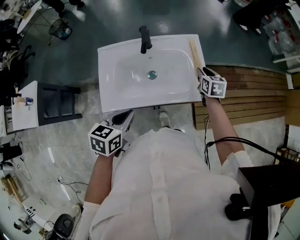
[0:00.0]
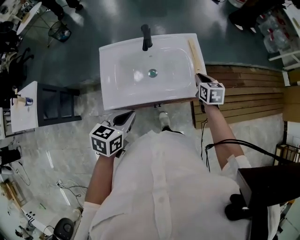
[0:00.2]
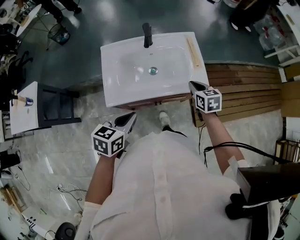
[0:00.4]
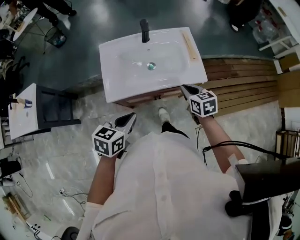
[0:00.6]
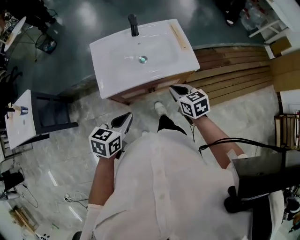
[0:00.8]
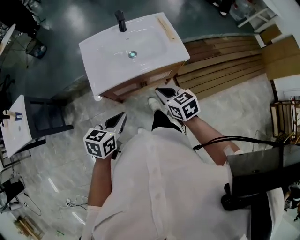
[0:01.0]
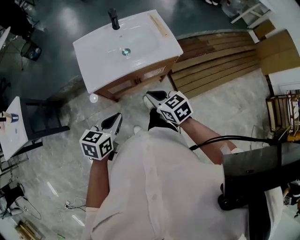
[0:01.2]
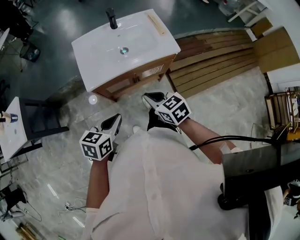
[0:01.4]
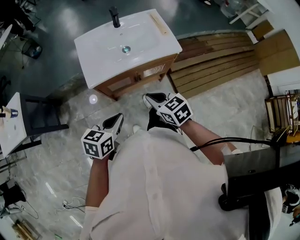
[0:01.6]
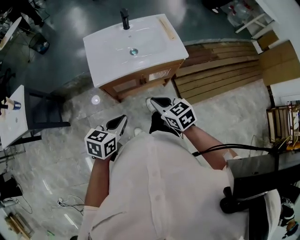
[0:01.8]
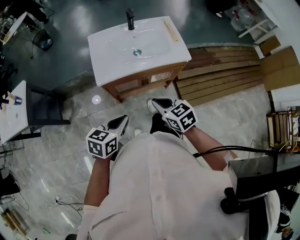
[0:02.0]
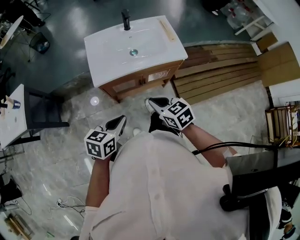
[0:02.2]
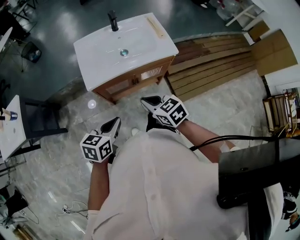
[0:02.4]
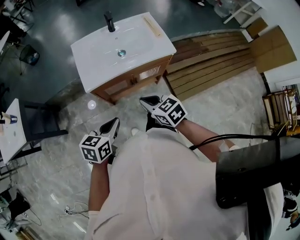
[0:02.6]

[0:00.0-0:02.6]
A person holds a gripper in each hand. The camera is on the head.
0:00.0 to 0:01.2: The left gripper shifts about 20 cm backward. Meanwhile the right gripper shifts roughly 40 cm backward and to the left, swivels some 20 degrees, and closes up.
0:01.2 to 0:02.6: The right gripper is displaced backward by approximately 5 cm.

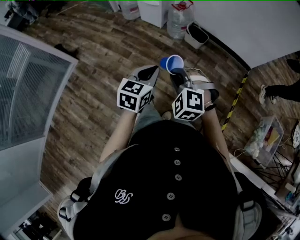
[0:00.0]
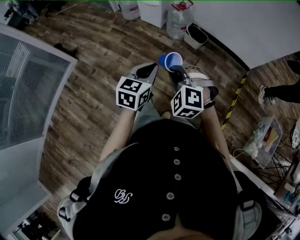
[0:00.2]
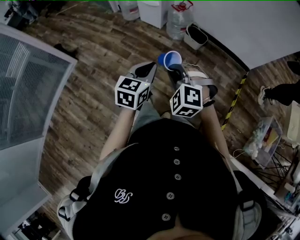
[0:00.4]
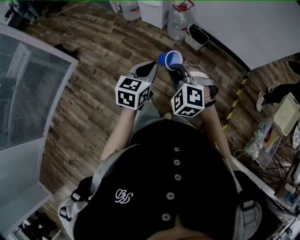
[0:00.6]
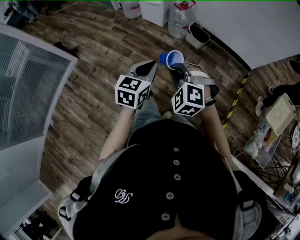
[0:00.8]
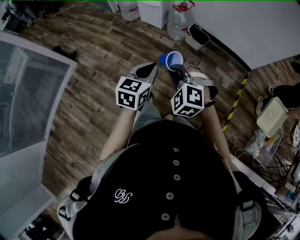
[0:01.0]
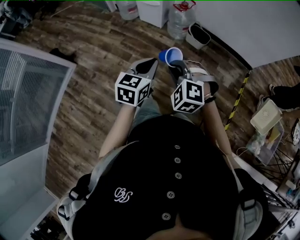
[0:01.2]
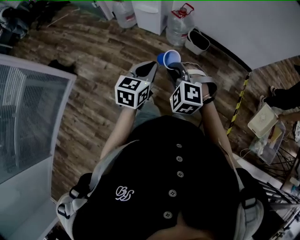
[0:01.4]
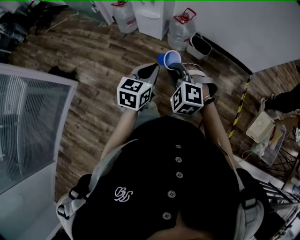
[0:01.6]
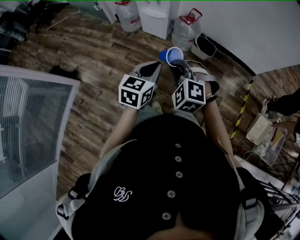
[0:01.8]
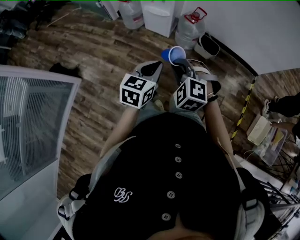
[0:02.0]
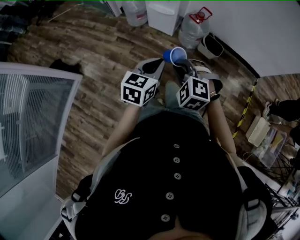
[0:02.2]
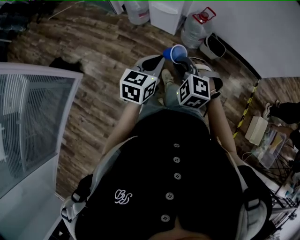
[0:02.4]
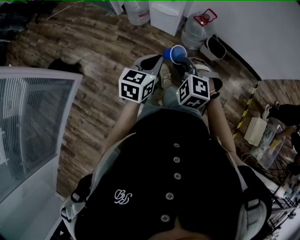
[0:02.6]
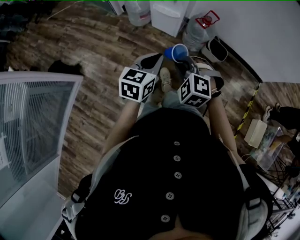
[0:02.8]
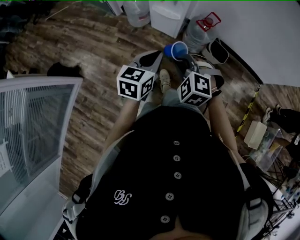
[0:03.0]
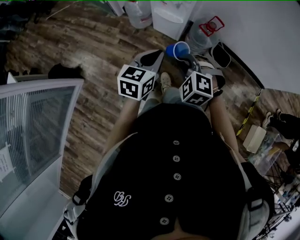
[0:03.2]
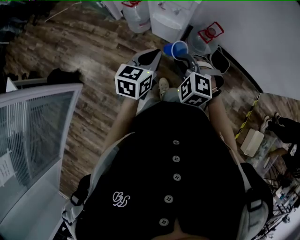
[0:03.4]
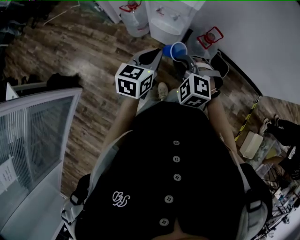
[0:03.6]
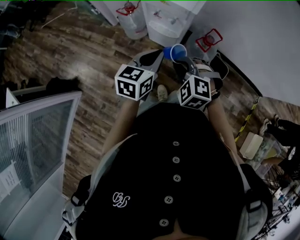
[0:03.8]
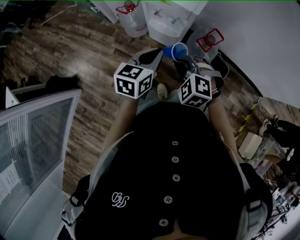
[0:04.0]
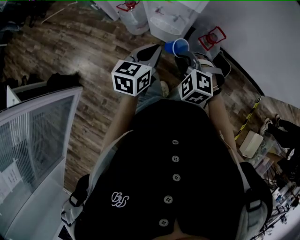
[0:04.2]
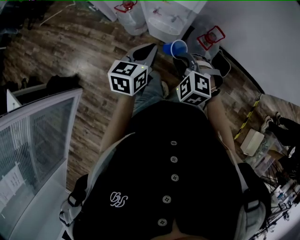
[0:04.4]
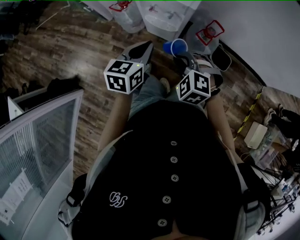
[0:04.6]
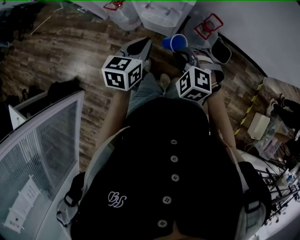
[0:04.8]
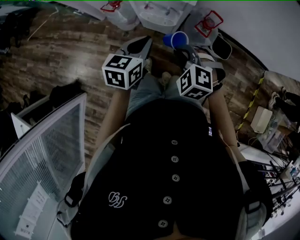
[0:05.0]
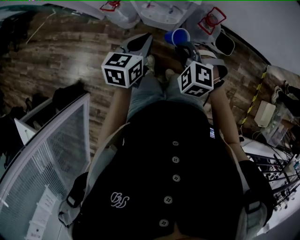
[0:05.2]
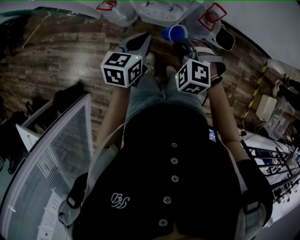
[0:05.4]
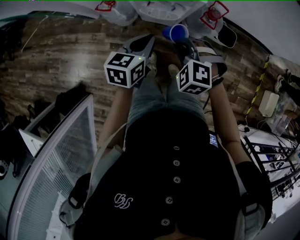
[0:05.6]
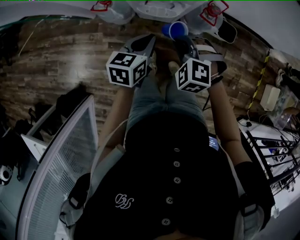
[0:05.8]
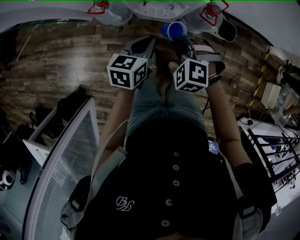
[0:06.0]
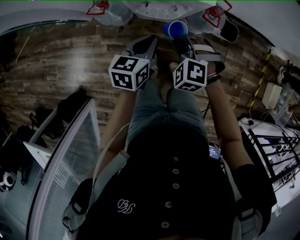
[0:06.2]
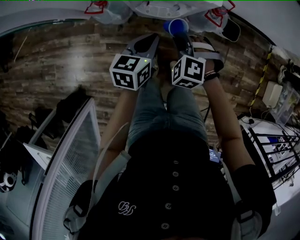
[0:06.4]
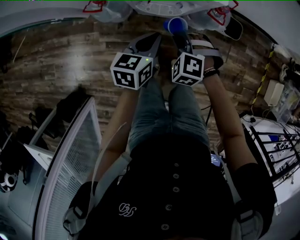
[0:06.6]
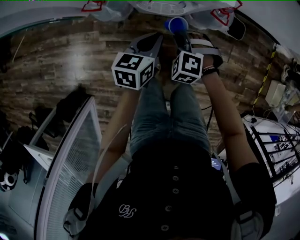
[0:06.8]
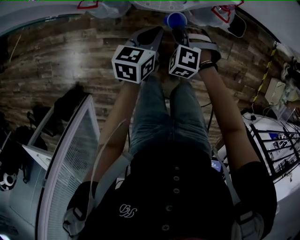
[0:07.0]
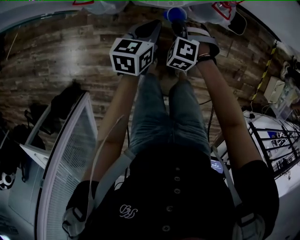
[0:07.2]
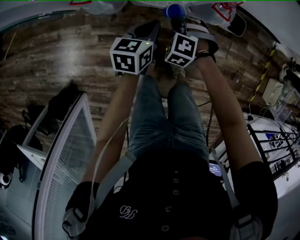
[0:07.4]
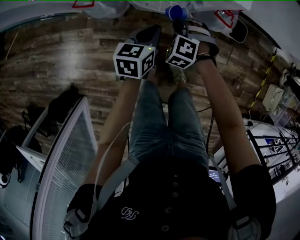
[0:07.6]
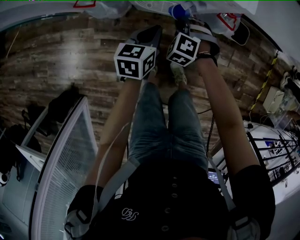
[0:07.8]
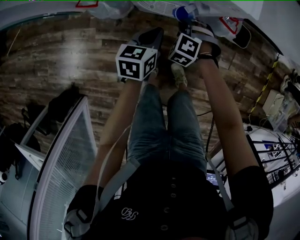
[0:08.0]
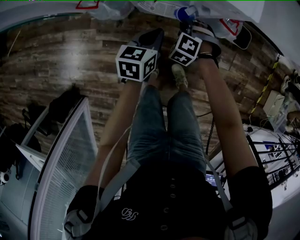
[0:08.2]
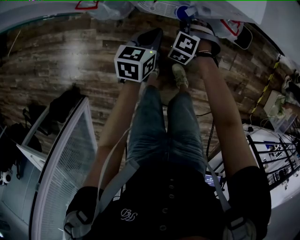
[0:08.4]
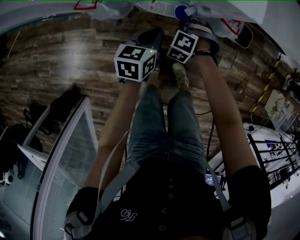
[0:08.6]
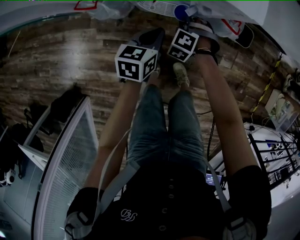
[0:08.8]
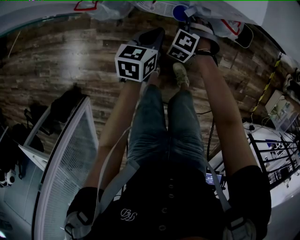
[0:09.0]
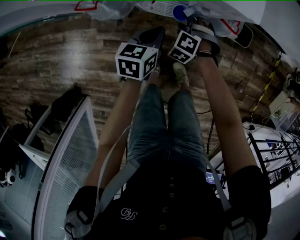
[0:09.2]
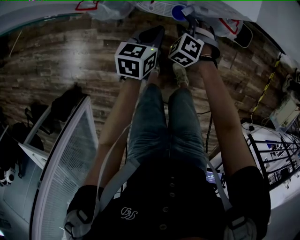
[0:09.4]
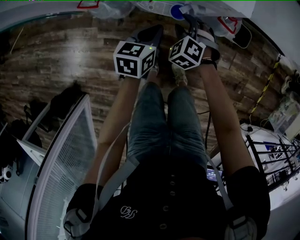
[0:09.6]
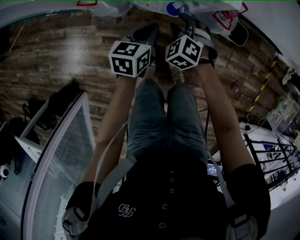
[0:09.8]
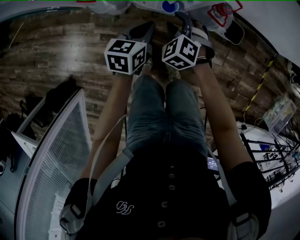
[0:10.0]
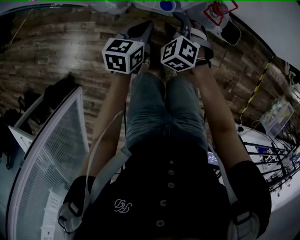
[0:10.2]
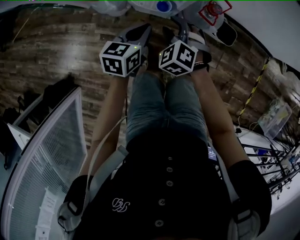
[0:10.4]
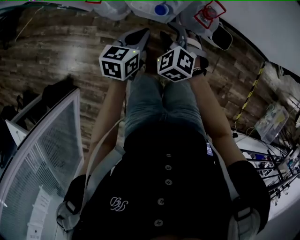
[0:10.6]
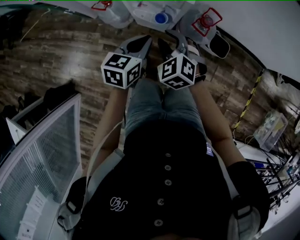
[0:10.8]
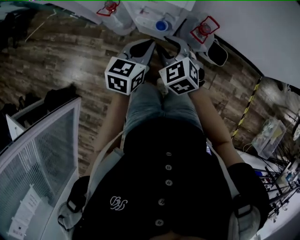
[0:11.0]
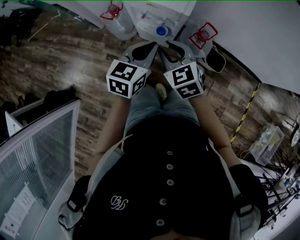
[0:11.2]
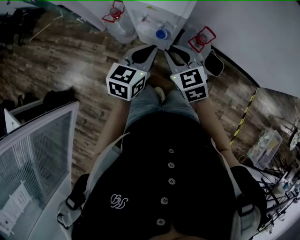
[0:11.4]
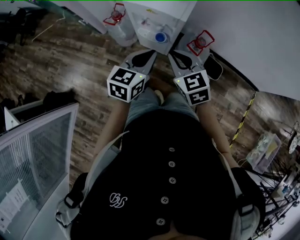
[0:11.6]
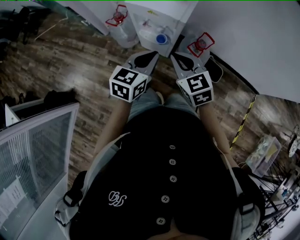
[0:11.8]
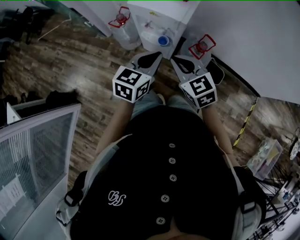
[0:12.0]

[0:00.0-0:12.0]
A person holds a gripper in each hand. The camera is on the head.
0:00.0 to 0:01.6: Both grippers move forward and to the left, approximately 20 cm.
0:01.6 to 0:03.0: Both grippers move forward and to the left, some 20 cm.
0:03.0 to 0:04.4: The two grippers go some 20 cm forward.
0:04.4 to 0:06.0: The left gripper travels downward and forward by some 15 cm, and rotates approximately 20 degrees; the right gripper moves forward, downward and to the left, approximately 15 cm.
0:06.0 to 0:07.6: The right gripper heads downward and forward, covering about 20 cm; the left gripper heads downward, covering roughly 15 cm.
0:07.6 to 0:09.0: The right gripper is displaced downward by some 5 cm, and opens its fingers.
0:09.0 to 0:10.4: The left gripper travels upward by approximately 15 cm. Meanwhile the right gripper is displaced upward by some 20 cm, and rotates about 30 degrees.
0:10.4 to 0:12.0: Both grippers move upward and backward, roughly 20 cm. The right gripper changes its angle by about 40 degrees, and closes its fingers.

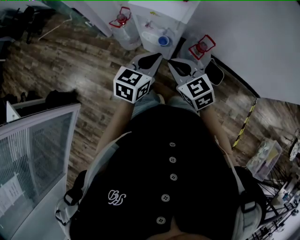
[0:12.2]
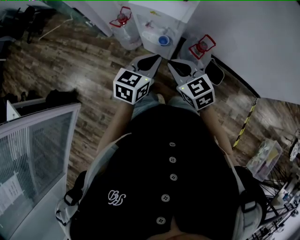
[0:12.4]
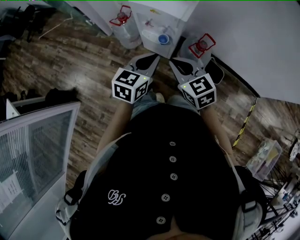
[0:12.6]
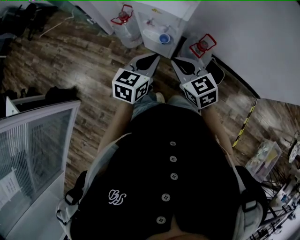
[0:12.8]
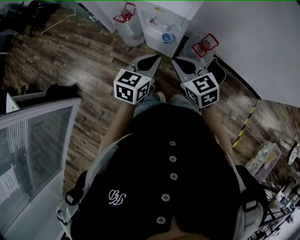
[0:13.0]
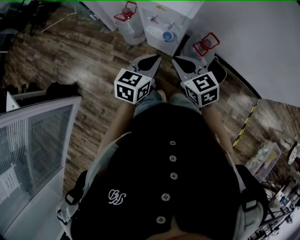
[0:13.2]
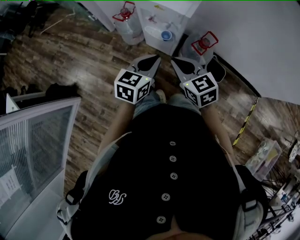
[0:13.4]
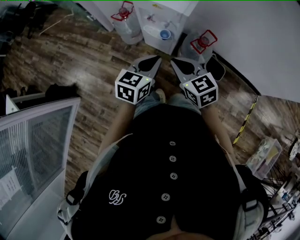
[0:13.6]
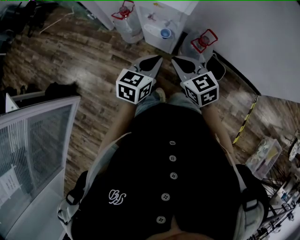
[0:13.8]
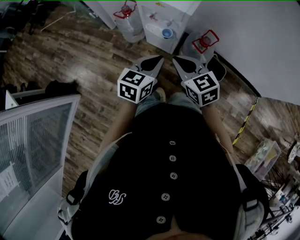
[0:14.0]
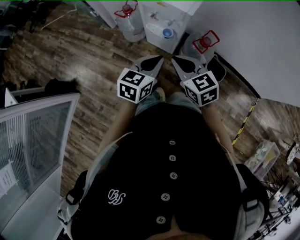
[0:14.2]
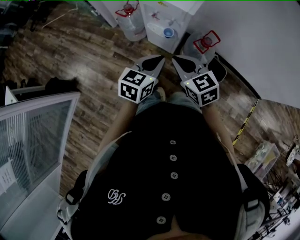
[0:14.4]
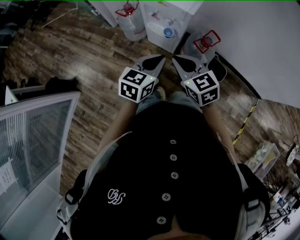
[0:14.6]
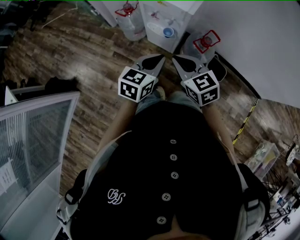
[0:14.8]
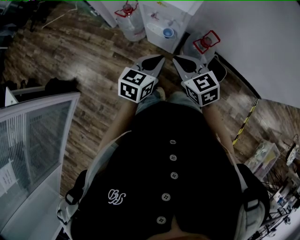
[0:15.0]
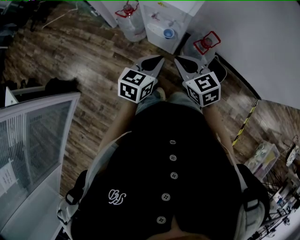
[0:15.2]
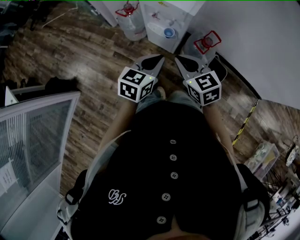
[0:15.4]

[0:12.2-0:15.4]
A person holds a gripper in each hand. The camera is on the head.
0:12.2 to 0:13.8: The left gripper changes place by some 5 cm.
0:13.8 to 0:15.4: Both grippers stay put.

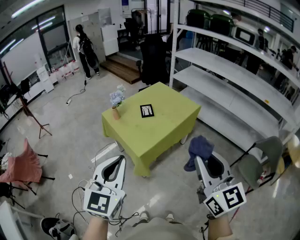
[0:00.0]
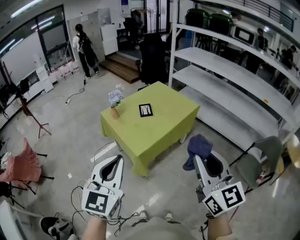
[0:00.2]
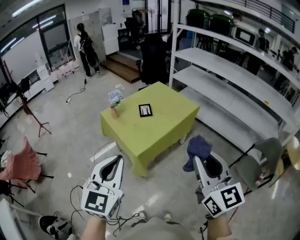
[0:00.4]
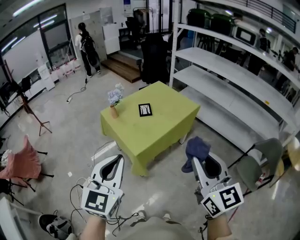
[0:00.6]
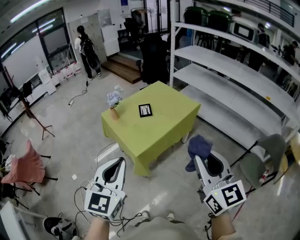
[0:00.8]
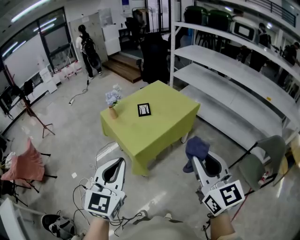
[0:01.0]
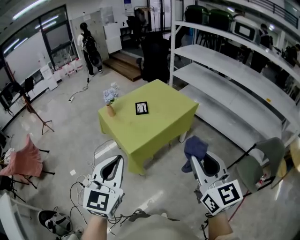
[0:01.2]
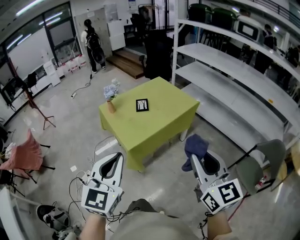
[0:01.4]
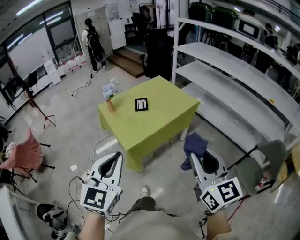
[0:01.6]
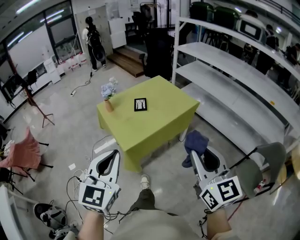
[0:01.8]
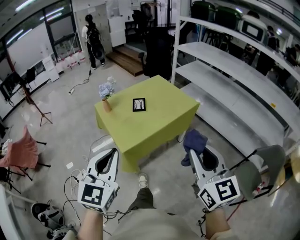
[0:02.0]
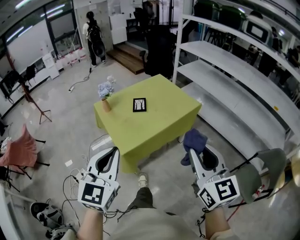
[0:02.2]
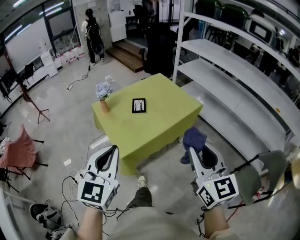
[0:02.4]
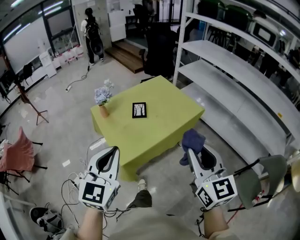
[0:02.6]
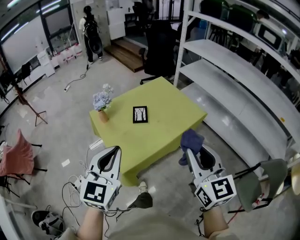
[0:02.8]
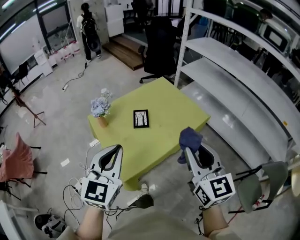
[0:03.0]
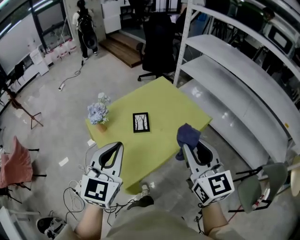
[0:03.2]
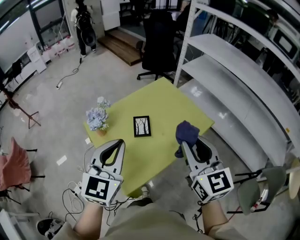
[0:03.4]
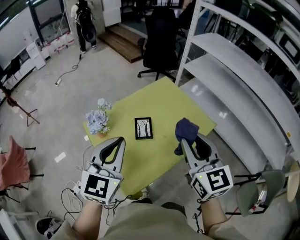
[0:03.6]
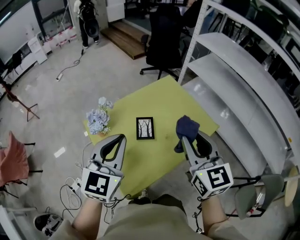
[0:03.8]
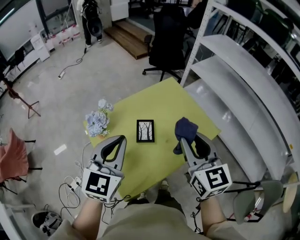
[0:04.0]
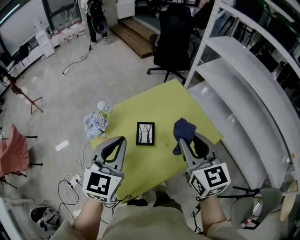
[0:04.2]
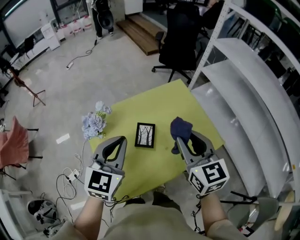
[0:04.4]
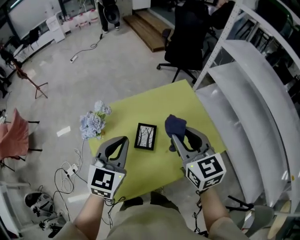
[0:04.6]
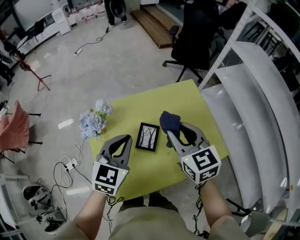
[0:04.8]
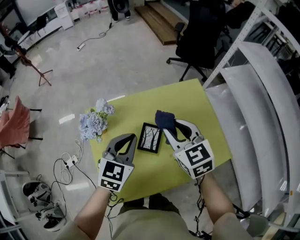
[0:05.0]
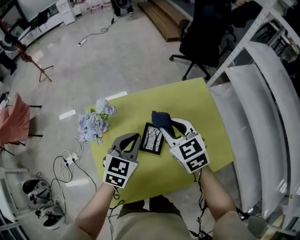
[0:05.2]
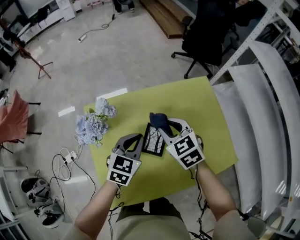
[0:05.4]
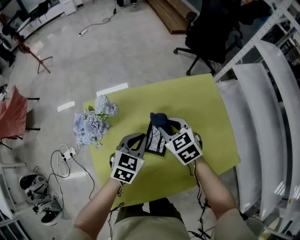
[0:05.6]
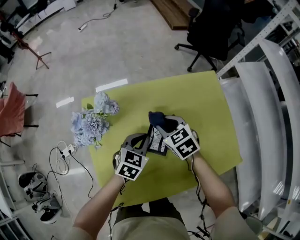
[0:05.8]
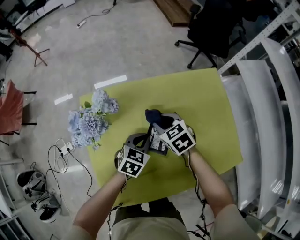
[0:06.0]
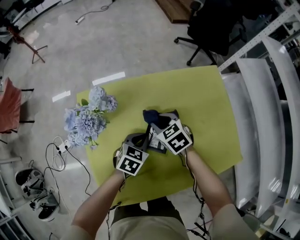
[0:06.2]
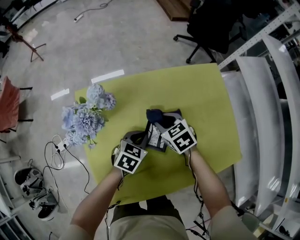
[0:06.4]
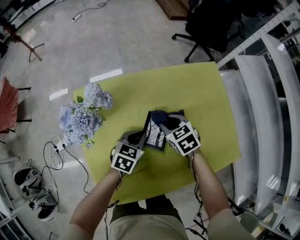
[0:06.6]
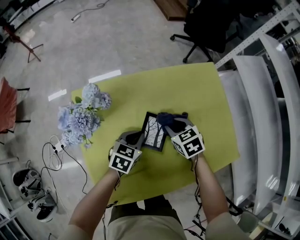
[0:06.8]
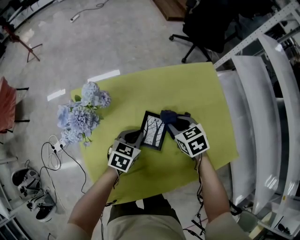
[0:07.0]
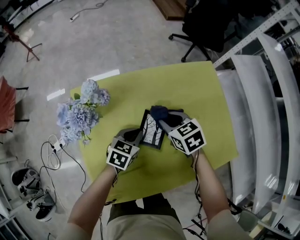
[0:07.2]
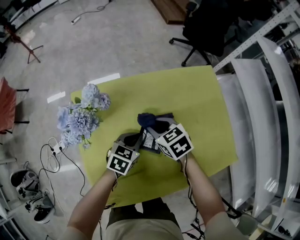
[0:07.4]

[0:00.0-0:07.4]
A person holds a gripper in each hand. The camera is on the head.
0:00.0 to 0:01.4: The grippers both shift to the right by roughly 10 cm.
0:01.4 to 0:03.0: Both grippers move forward, approximately 30 cm.
0:03.0 to 0:04.4: Both grippers travel together forward, roughly 30 cm.
0:04.4 to 0:06.0: The right gripper goes roughly 35 cm downward and forward, and tips its fingers downward by approximately 30 degrees; the left gripper travels downward by about 35 cm, and rotates some 30 degrees.
0:06.0 to 0:07.4: The right gripper reaches about 10 cm to the right, then returns.
